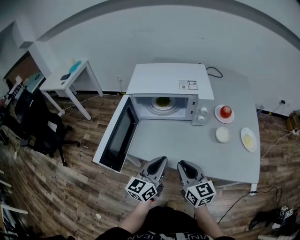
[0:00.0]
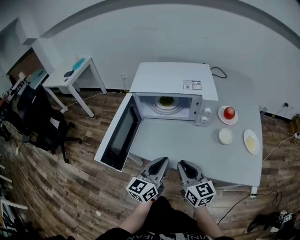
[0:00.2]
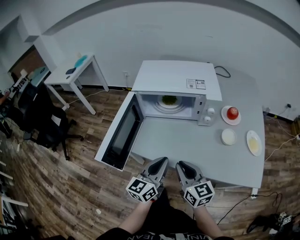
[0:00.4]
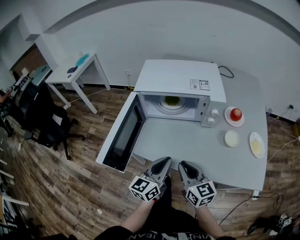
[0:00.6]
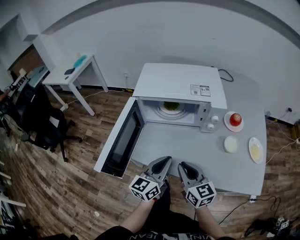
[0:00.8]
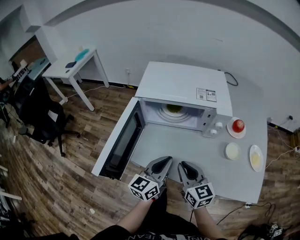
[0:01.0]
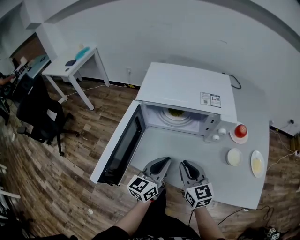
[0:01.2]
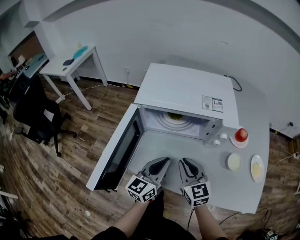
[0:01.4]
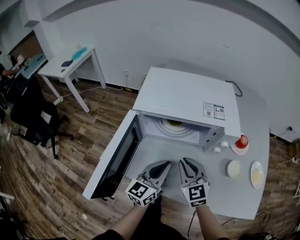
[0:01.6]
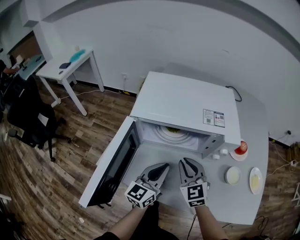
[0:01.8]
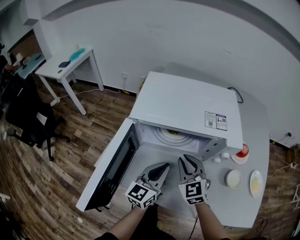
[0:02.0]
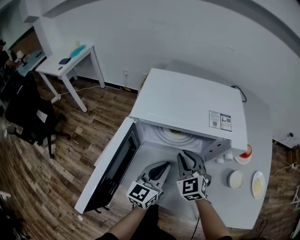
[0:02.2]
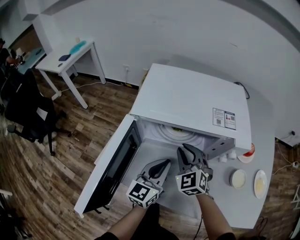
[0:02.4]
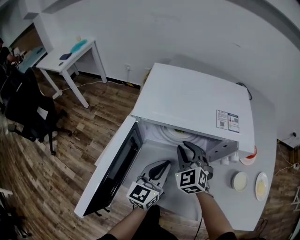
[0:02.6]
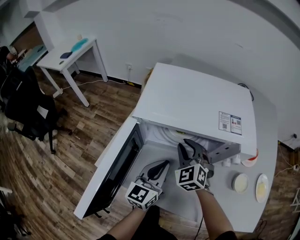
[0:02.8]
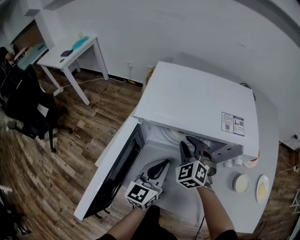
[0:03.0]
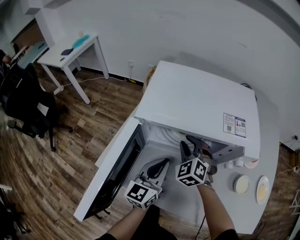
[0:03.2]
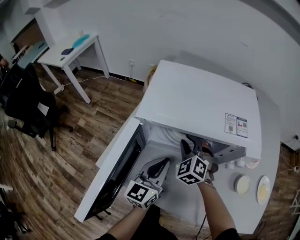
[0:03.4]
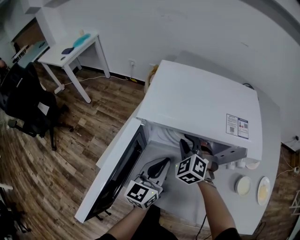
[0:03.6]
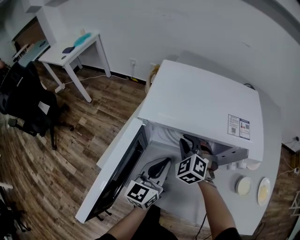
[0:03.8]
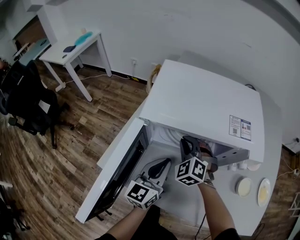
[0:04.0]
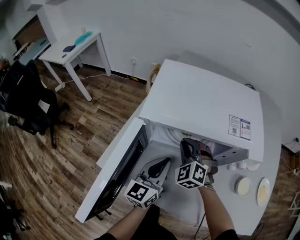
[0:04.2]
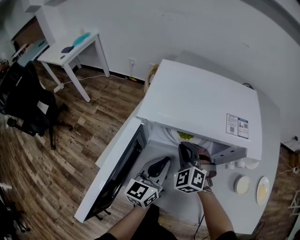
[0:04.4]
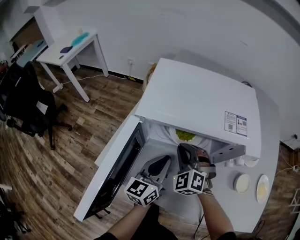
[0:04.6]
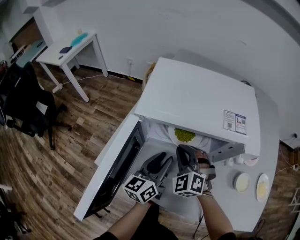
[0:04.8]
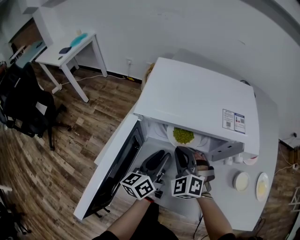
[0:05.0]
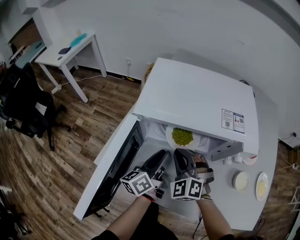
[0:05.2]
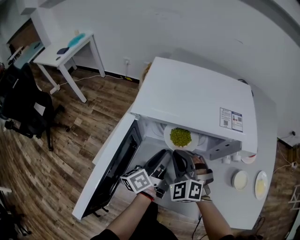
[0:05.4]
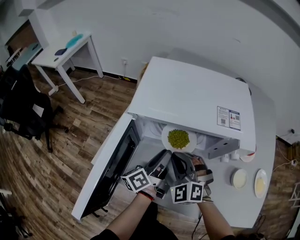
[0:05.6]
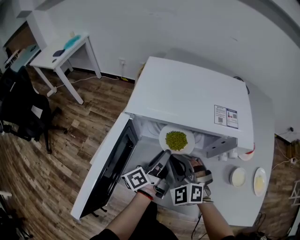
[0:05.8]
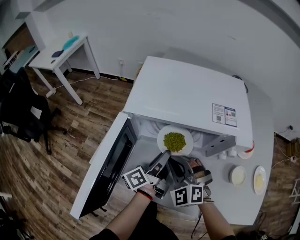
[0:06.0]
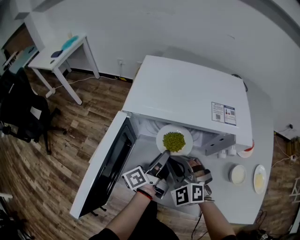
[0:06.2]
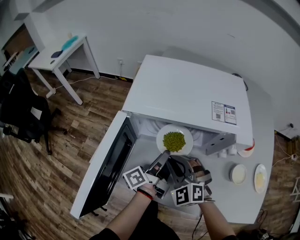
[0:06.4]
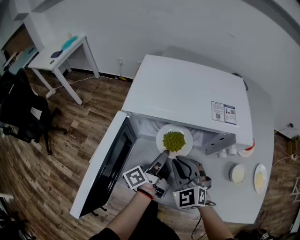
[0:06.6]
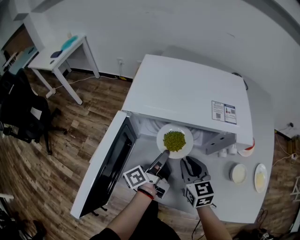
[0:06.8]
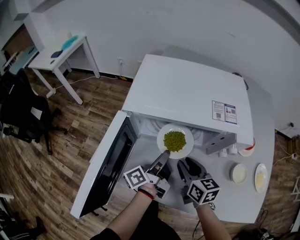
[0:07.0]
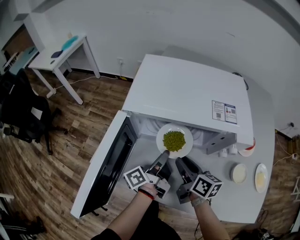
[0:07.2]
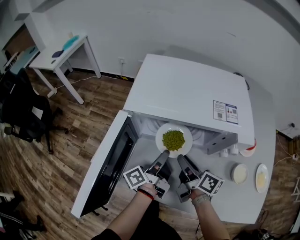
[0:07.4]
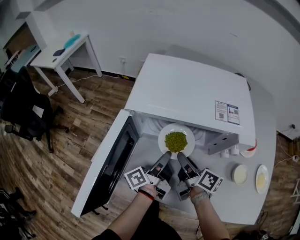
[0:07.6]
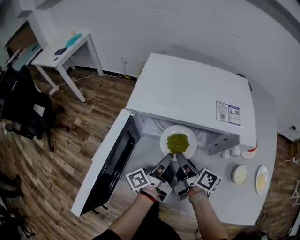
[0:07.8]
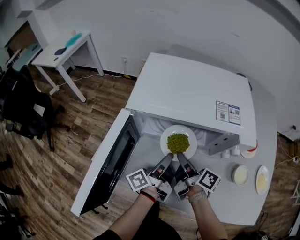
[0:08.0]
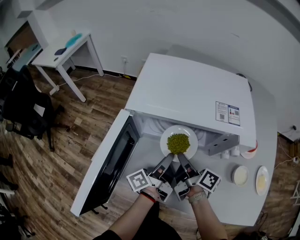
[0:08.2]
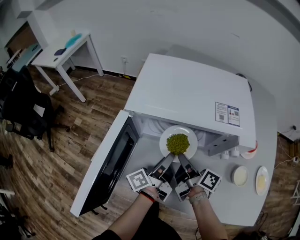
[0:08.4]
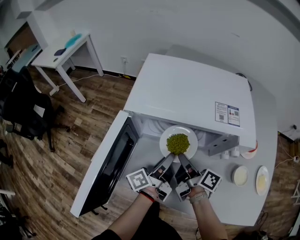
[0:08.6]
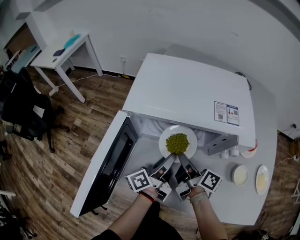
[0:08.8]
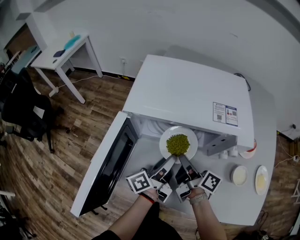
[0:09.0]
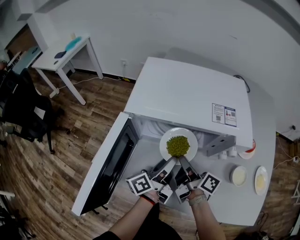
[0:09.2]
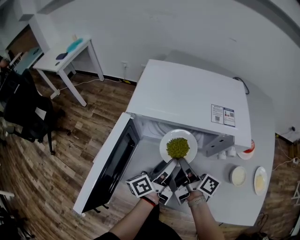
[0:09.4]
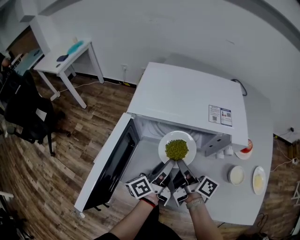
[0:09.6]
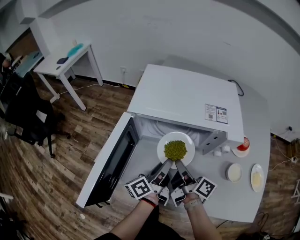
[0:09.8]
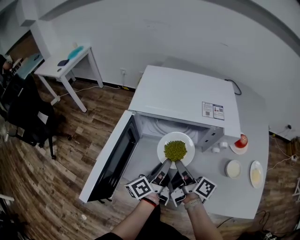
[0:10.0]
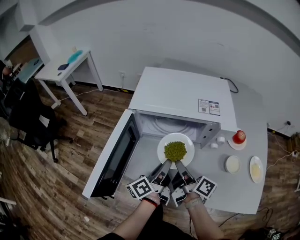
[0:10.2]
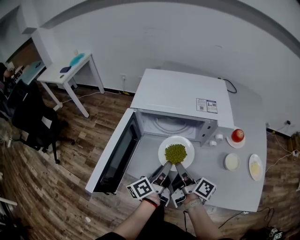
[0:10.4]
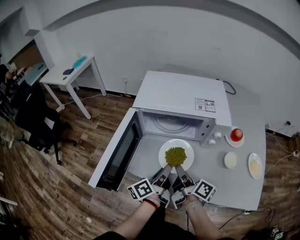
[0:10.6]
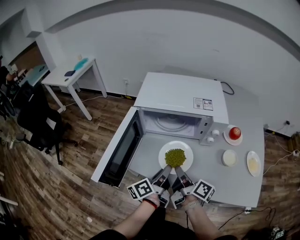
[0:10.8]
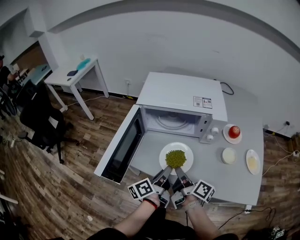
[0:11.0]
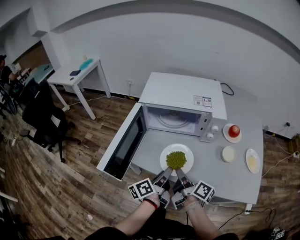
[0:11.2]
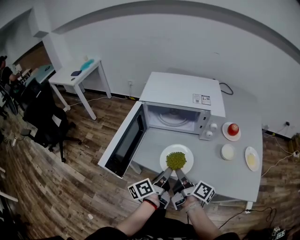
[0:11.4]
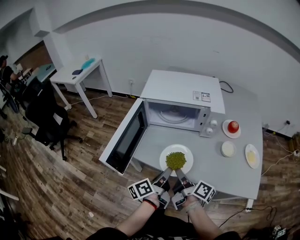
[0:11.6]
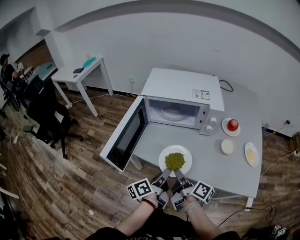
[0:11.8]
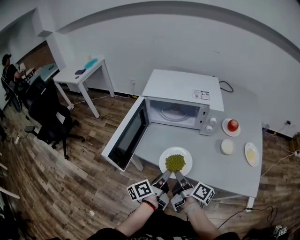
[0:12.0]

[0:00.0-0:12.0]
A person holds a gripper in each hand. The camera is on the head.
0:00.0 to 0:01.6: The grippers both shift forward by roughly 15 cm. The right gripper swivels roughly 30 degrees.
0:01.6 to 0:03.0: The left gripper is displaced forward by some 5 cm. The right gripper heads forward, covering roughly 15 cm, and swivels about 30 degrees.
0:03.0 to 0:04.4: The grippers move only a little.
0:04.4 to 0:06.0: The right gripper shifts roughly 10 cm backward, while the left gripper changes place by some 5 cm, twists about 60 degrees counterclockwise, seen from behind, and opens up.
0:06.0 to 0:07.6: The right gripper ends up roughly 5 cm from where it was, rolls clockwise, seen from behind, by approximately 110 degrees, and opens up.
0:07.6 to 0:09.0: The left gripper opens its fingers.
0:09.0 to 0:10.4: The two grippers go approximately 10 cm backward. The left gripper closes up.
0:10.4 to 0:12.0: The two grippers go approximately 15 cm backward.

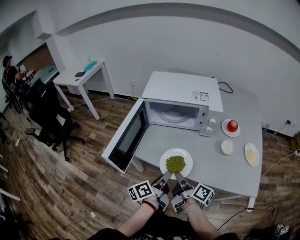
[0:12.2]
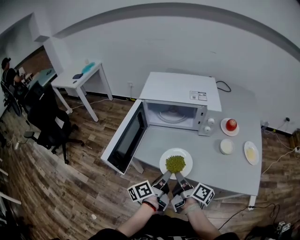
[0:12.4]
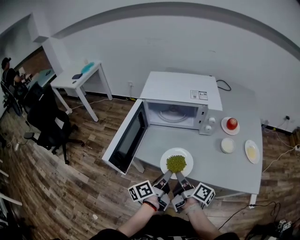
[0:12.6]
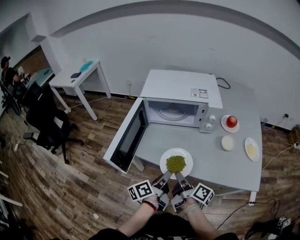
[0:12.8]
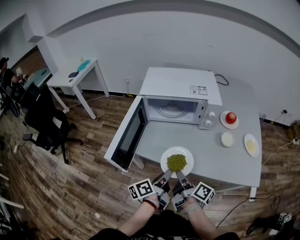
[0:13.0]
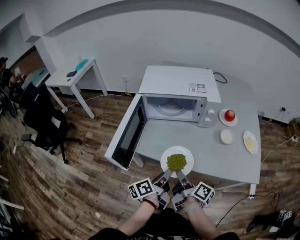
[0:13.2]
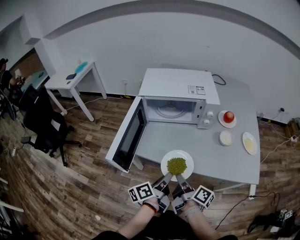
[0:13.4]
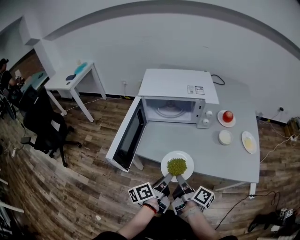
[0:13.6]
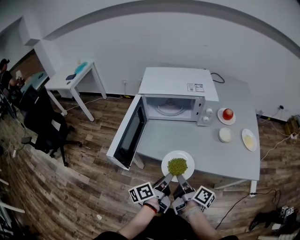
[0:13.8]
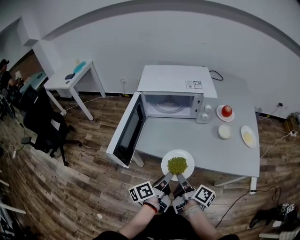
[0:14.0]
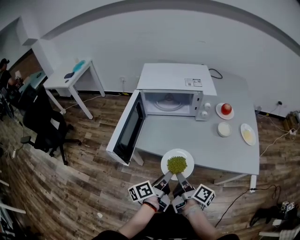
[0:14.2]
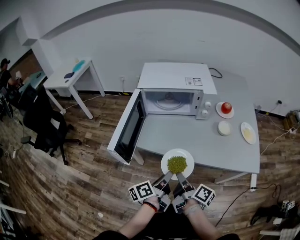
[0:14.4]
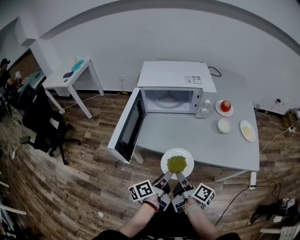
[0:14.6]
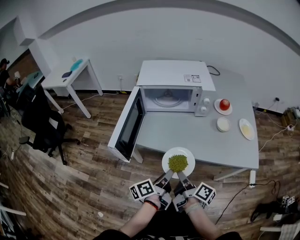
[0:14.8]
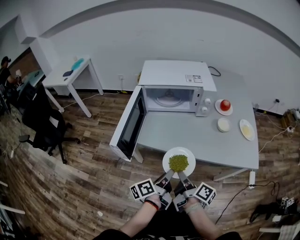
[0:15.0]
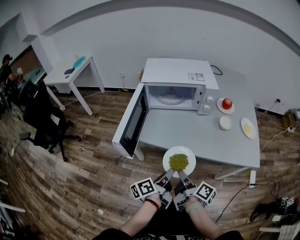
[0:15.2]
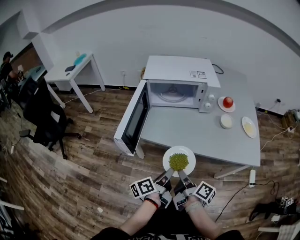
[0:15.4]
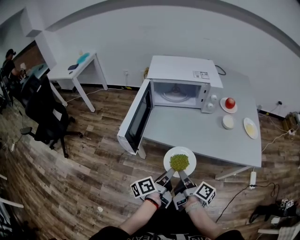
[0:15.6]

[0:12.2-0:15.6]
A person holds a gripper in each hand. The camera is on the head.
0:12.2 to 0:13.8: Both grippers travel together backward, about 5 cm.
0:13.8 to 0:15.6: Both grippers move backward, roughly 5 cm.

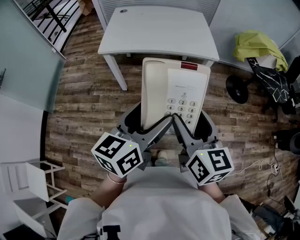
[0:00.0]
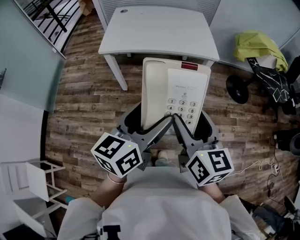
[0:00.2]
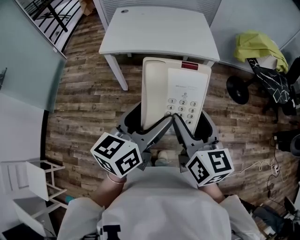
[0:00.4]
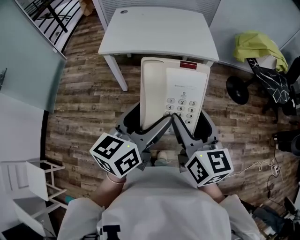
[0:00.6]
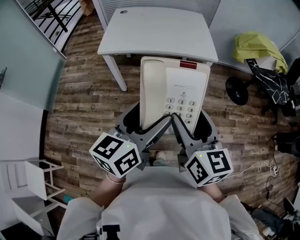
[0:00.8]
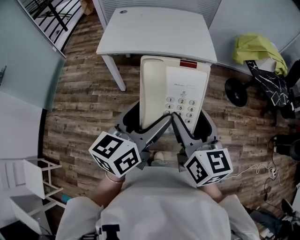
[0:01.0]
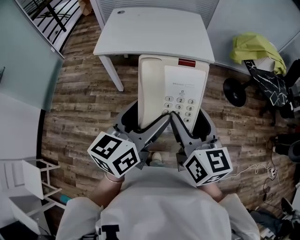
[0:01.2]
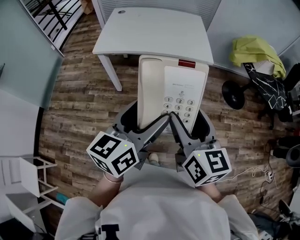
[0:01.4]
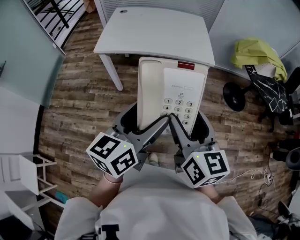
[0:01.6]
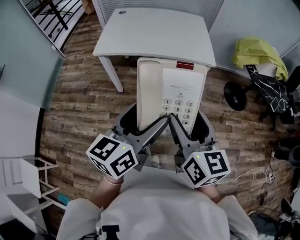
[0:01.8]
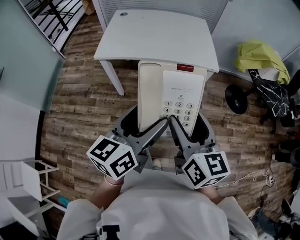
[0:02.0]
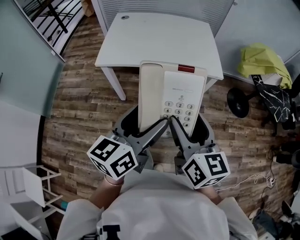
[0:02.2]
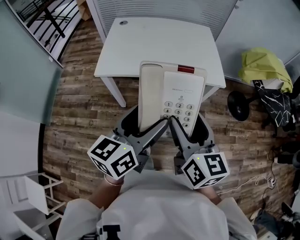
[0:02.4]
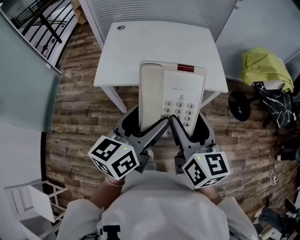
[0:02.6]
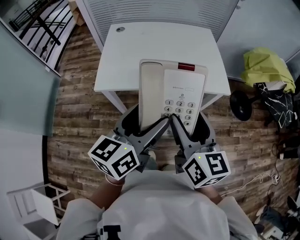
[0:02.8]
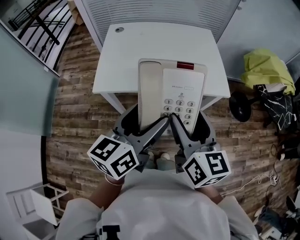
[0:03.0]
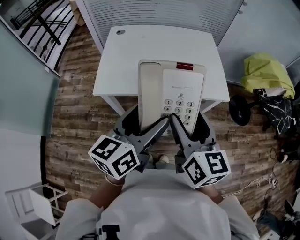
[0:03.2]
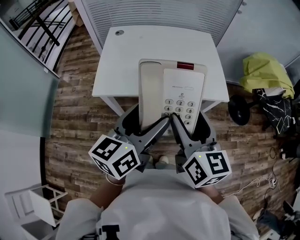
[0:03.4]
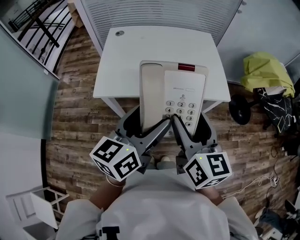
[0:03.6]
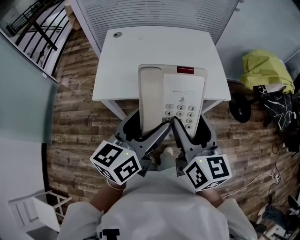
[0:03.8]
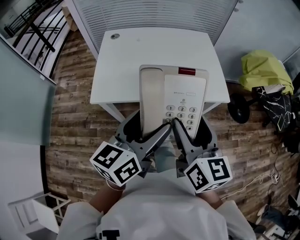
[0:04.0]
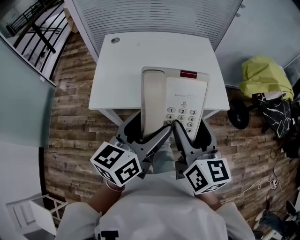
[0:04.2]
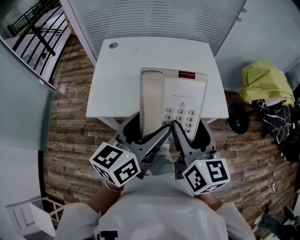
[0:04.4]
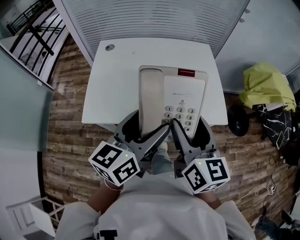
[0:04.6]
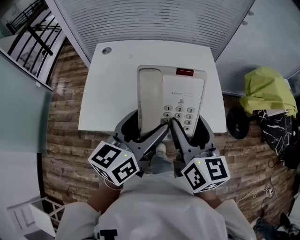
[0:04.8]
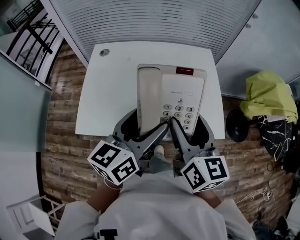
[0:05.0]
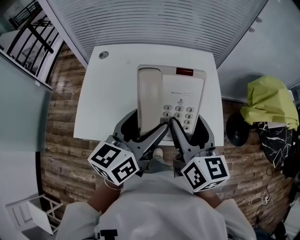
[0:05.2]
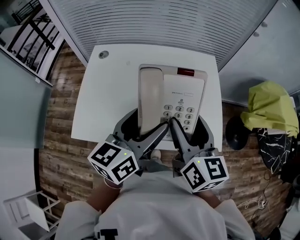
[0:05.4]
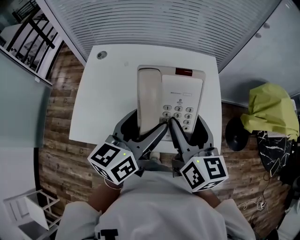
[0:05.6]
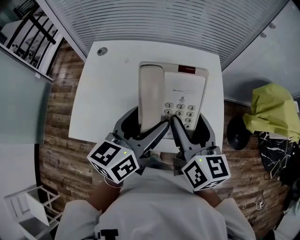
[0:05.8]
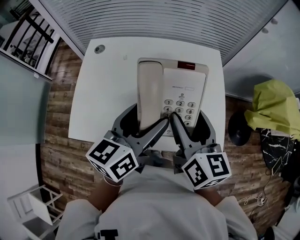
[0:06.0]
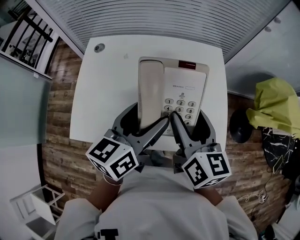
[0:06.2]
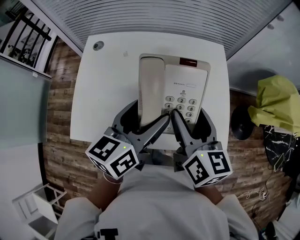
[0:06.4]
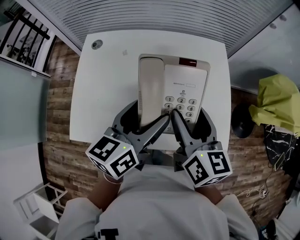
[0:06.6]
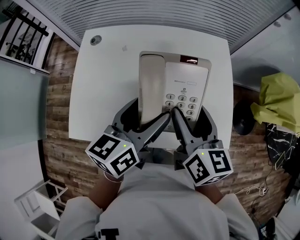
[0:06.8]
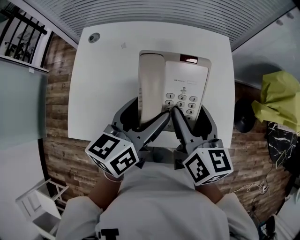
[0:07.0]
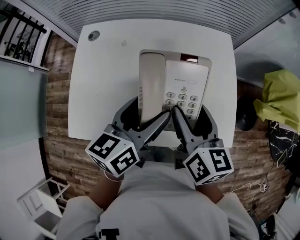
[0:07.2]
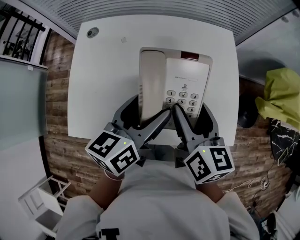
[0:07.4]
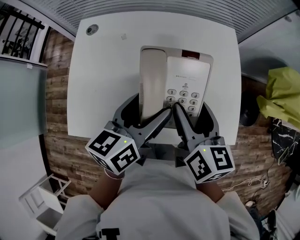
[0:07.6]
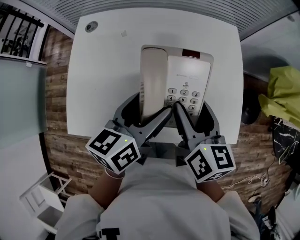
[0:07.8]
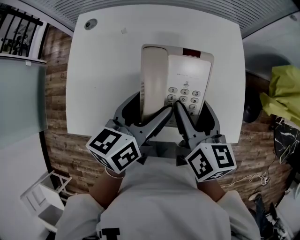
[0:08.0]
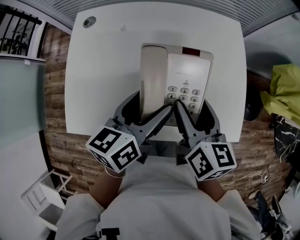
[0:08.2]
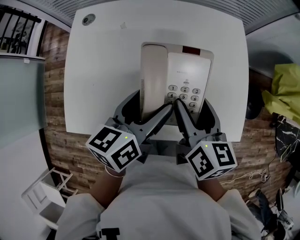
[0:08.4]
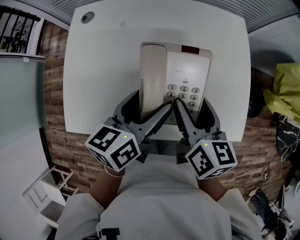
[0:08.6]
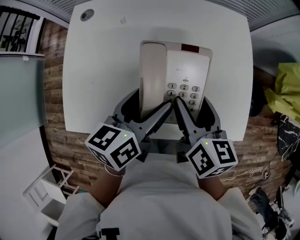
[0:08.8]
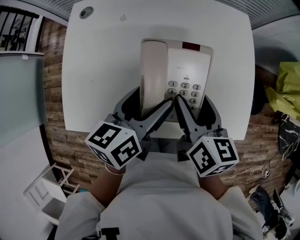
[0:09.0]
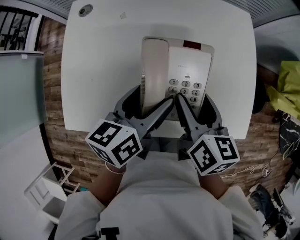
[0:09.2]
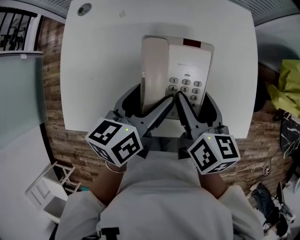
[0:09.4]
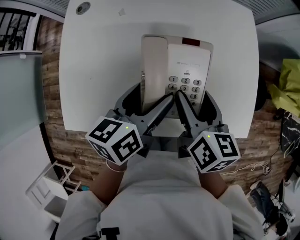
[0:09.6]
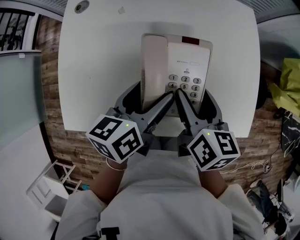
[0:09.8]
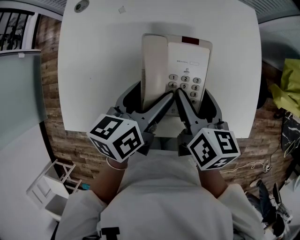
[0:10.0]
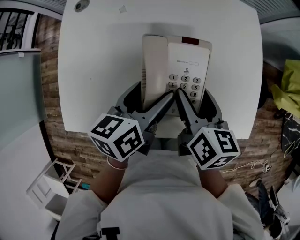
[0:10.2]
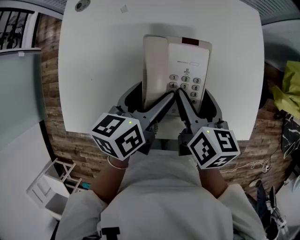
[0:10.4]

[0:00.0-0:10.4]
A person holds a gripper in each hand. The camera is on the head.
0:00.0 to 0:01.4: The grippers stay close to where they were, moving slightly.
0:01.4 to 0:03.0: Both grippers travel together forward and to the left, roughly 25 cm.
0:03.0 to 0:04.4: Both grippers move forward, roughly 10 cm.
0:04.4 to 0:06.0: Both grippers travel together forward, some 25 cm.
0:06.0 to 0:07.4: Both grippers move downward, approximately 5 cm.
0:07.4 to 0:09.0: The two grippers go some 5 cm downward.
0:09.0 to 0:10.4: The left gripper ends up some 5 cm from where it was.
